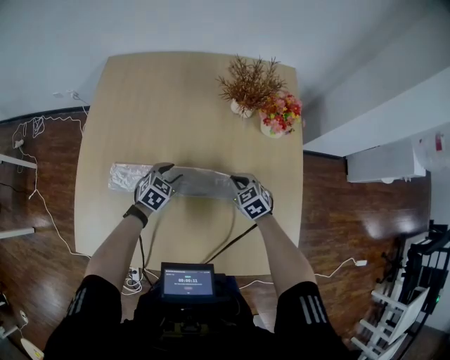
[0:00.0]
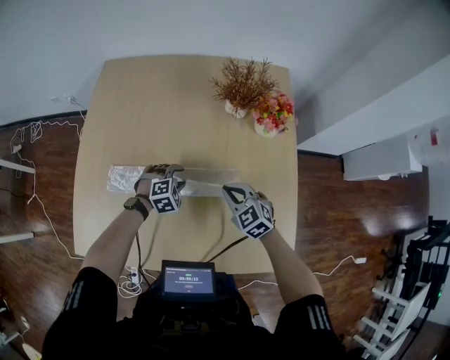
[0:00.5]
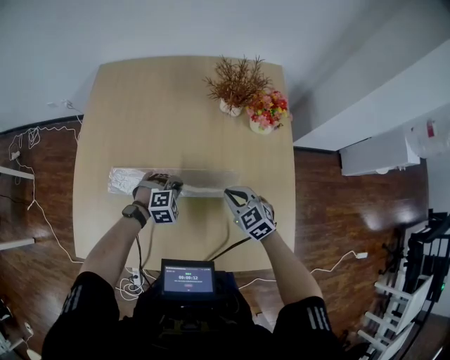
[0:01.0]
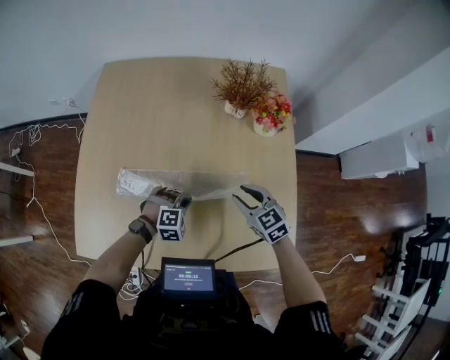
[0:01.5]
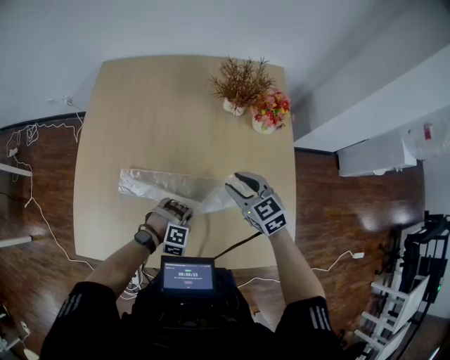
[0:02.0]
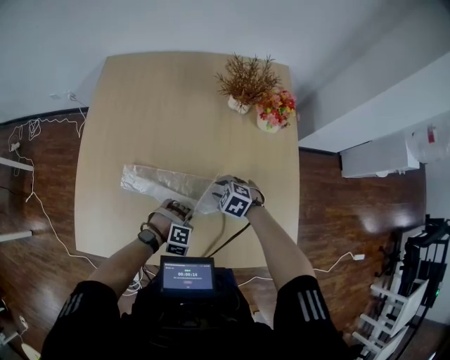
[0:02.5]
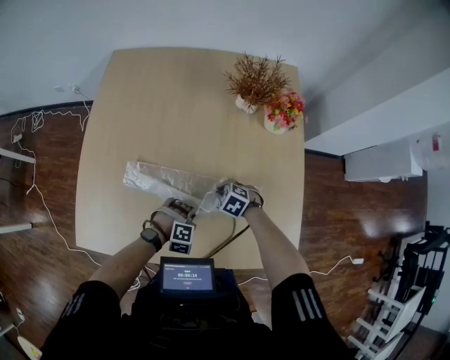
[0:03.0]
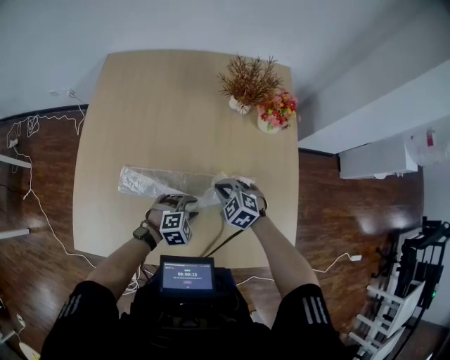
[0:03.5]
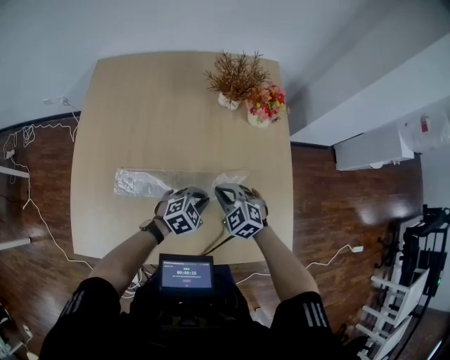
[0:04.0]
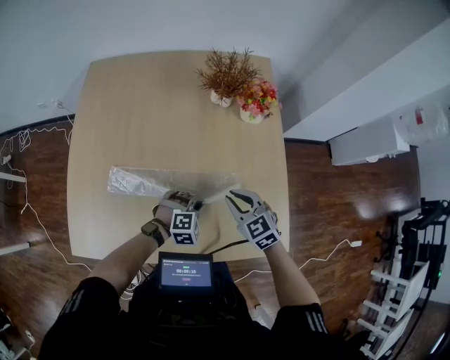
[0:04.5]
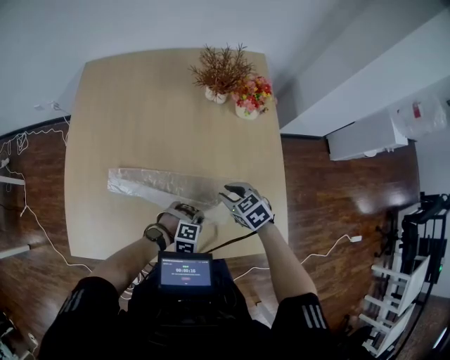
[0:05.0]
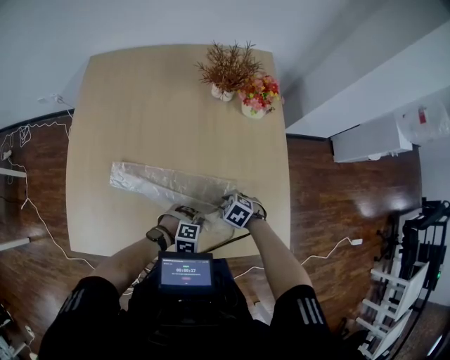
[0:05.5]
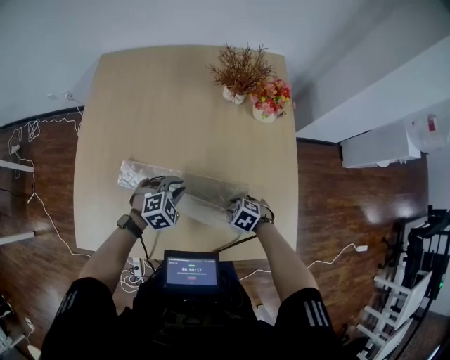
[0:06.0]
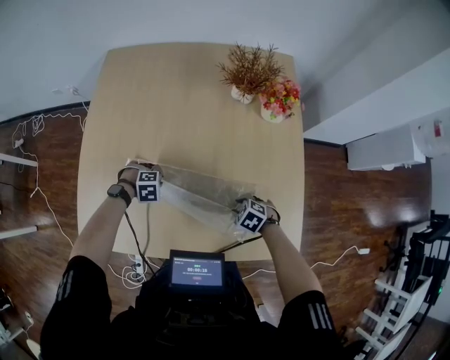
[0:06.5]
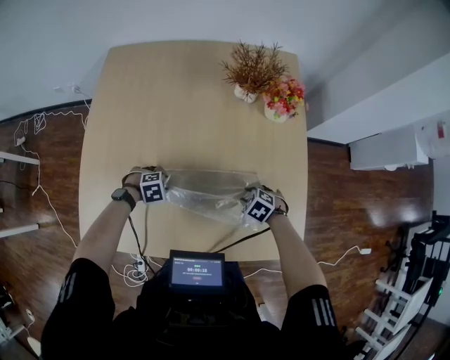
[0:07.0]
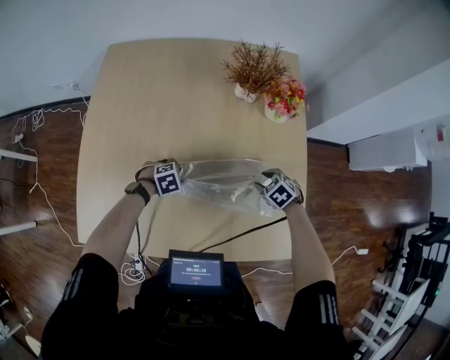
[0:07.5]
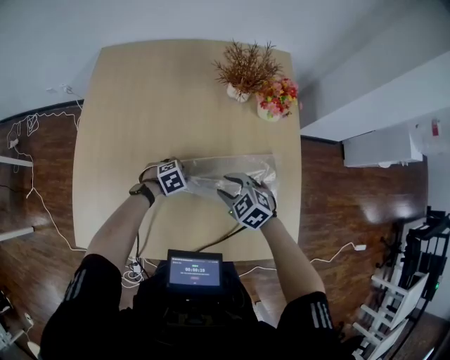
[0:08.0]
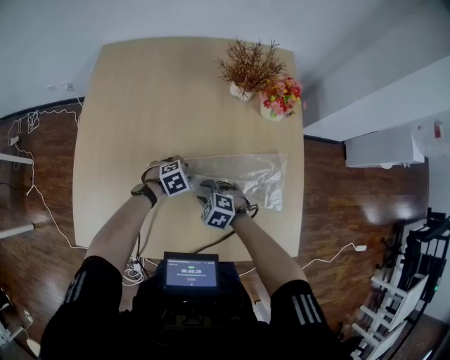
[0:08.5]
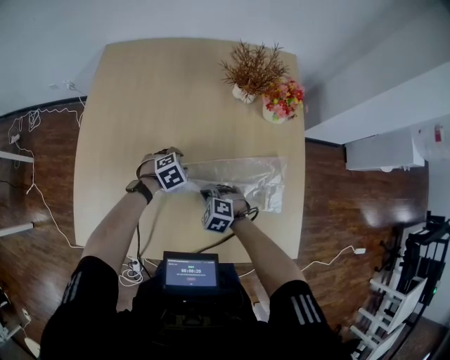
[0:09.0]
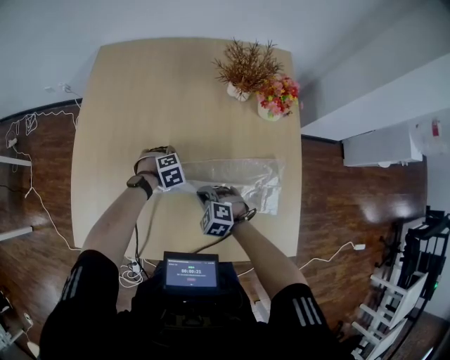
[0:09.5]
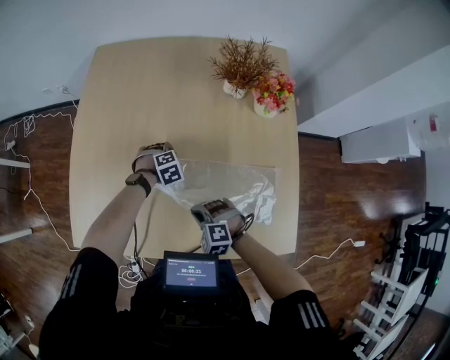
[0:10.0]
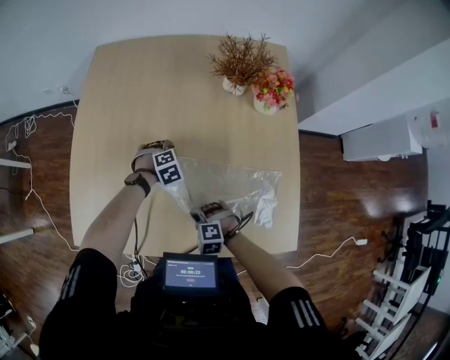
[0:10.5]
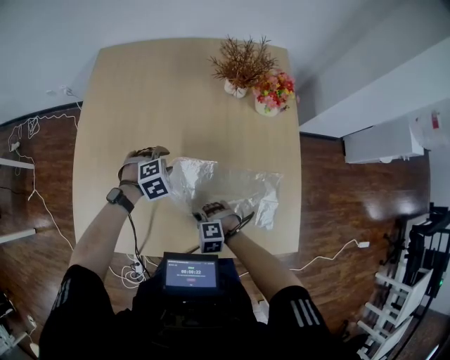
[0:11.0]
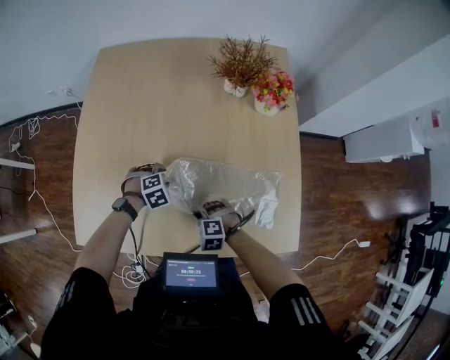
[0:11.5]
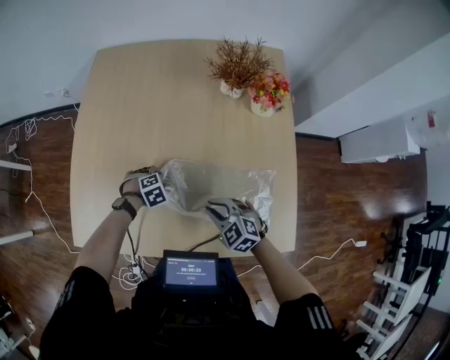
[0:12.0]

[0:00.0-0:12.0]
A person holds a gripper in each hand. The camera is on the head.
0:00.0 to 0:02.0: The right gripper goes about 15 cm upward, and opens up. The left gripper goes approximately 15 cm backward, rotates around the line of its fingers by about 70 degrees, clockwise from behind, and closes its fingers.
0:02.0 to 0:04.0: The left gripper changes place by approximately 10 cm, twists approximately 40 degrees counterclockwise, seen from behind, and opens and closes again. The right gripper shifts some 10 cm downward, changes its angle by roughly 20 degrees, and closes its fingers.
0:04.0 to 0:06.0: The right gripper moves downward, roughly 15 cm, changes its angle by some 30 degrees, and opens. Meanwhile the left gripper shifts by roughly 10 cm.
0:06.0 to 0:08.0: The right gripper is displaced upward by approximately 10 cm, and swivels approximately 20 degrees, while the left gripper goes about 10 cm downward, and rotates approximately 30 degrees.
0:08.0 to 0:10.0: The left gripper moves some 5 cm; the right gripper ends up some 15 cm from where it was, changes its angle by about 30 degrees, and closes its fingers.
0:10.0 to 0:12.0: The left gripper goes upward and returns, some 10 cm each way. The right gripper changes place by about 10 cm, and turns by some 30 degrees.

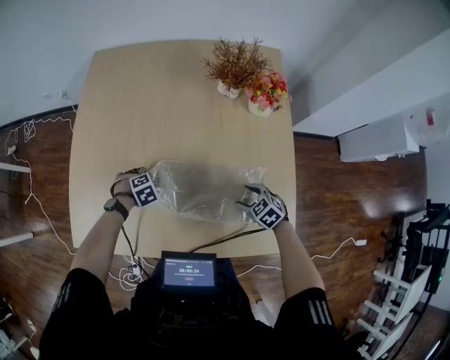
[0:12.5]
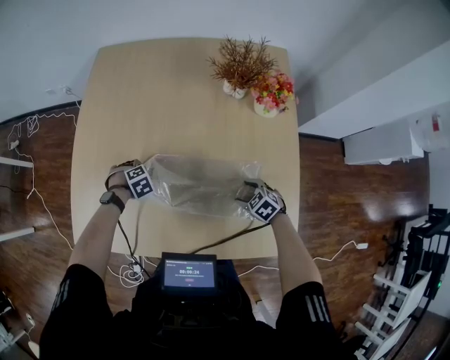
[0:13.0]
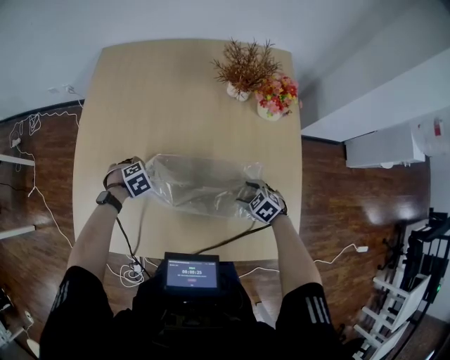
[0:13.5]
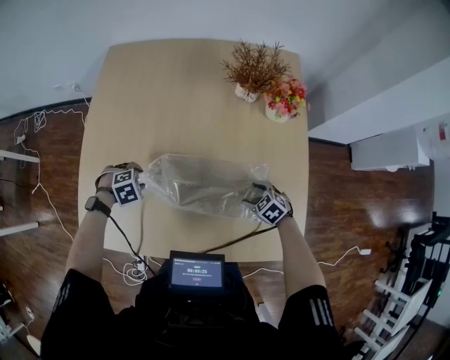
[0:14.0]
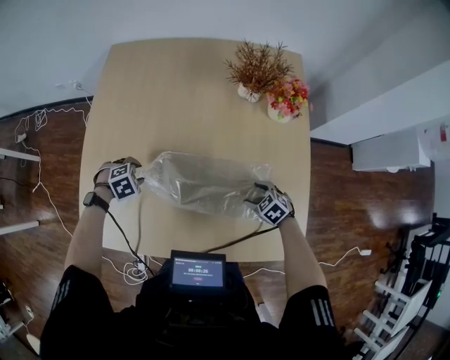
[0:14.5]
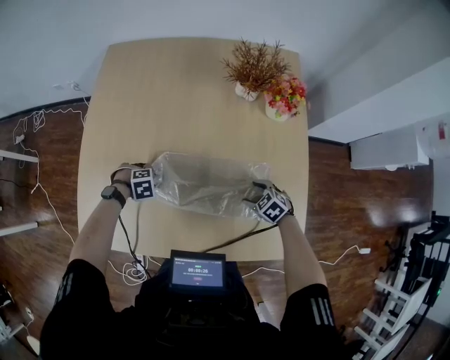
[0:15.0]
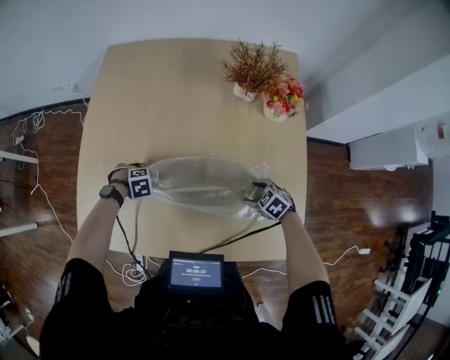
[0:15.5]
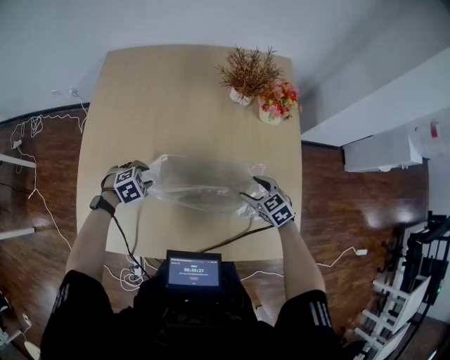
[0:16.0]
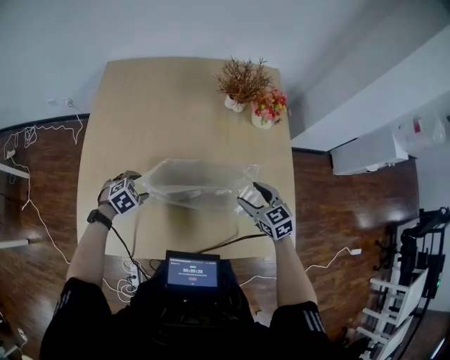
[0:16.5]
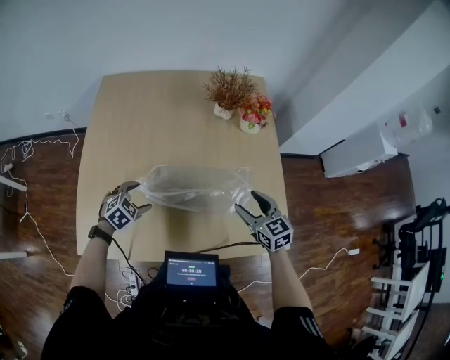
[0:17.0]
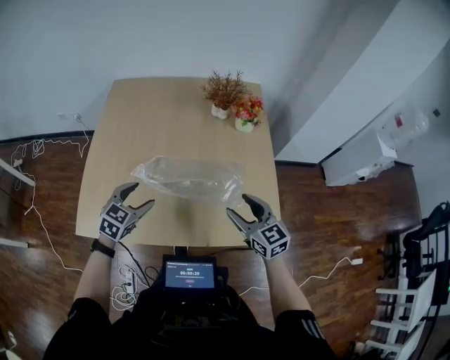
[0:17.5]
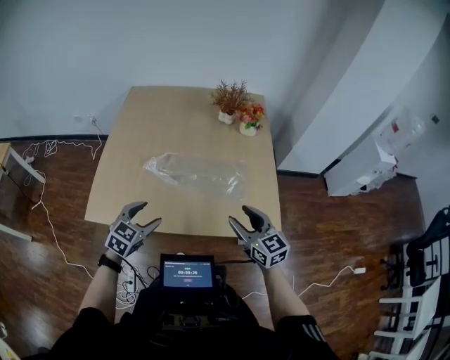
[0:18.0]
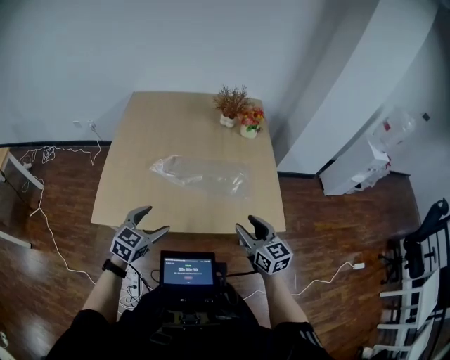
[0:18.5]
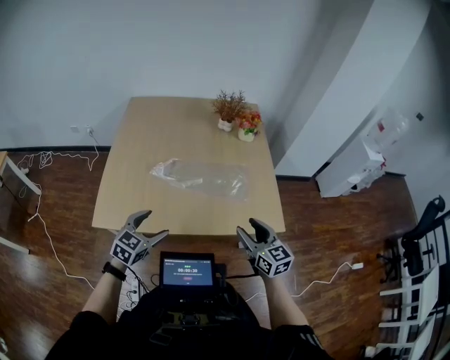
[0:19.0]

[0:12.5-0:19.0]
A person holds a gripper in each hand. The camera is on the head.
0:12.5 to 0:14.5: The left gripper ends up roughly 10 cm from where it was.
0:14.5 to 0:17.0: The right gripper travels upward by approximately 20 cm, and angles its fingers upward, by some 40 degrees; the left gripper moves upward, roughly 10 cm, rotates roughly 30 degrees, and opens its fingers.
0:17.0 to 0:19.0: The left gripper shifts roughly 30 cm backward and upward, and rotates roughly 30 degrees. Meanwhile the right gripper moves backward, about 25 cm.

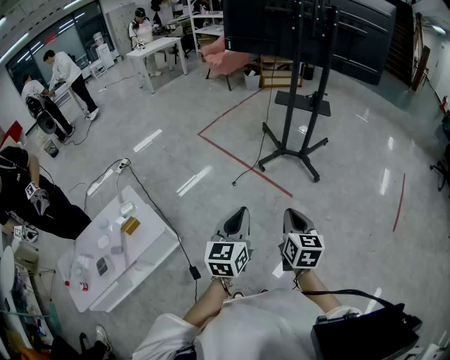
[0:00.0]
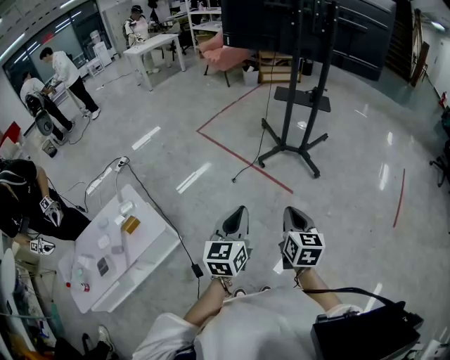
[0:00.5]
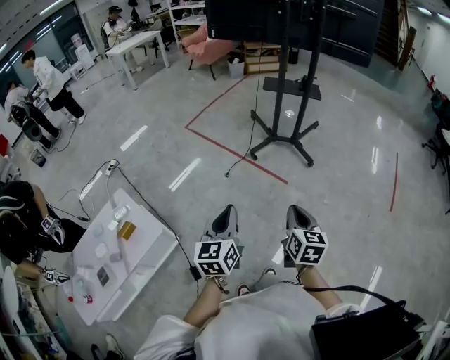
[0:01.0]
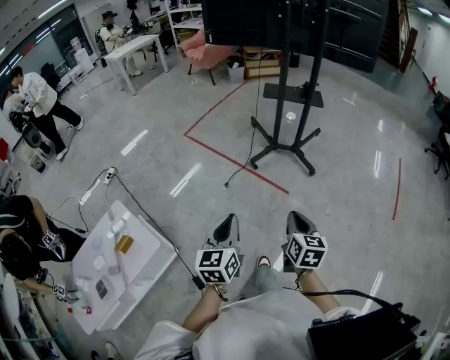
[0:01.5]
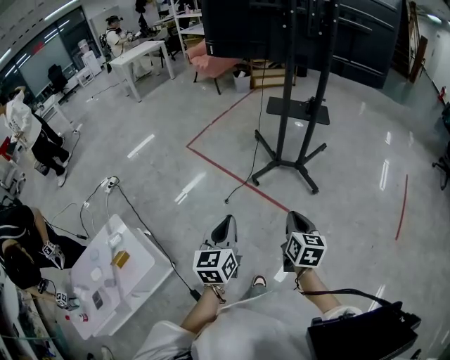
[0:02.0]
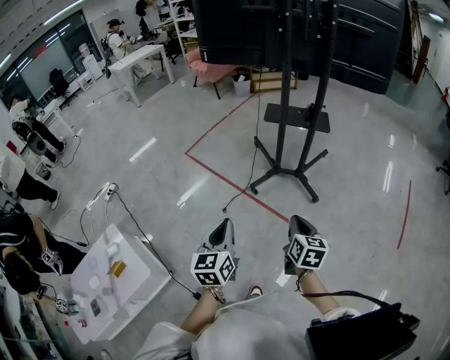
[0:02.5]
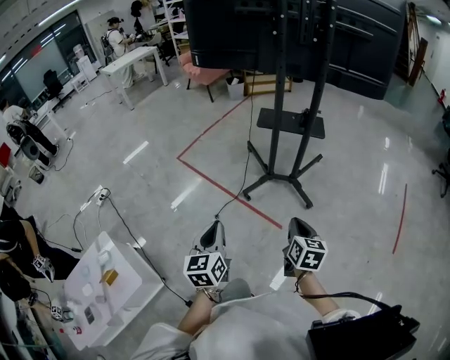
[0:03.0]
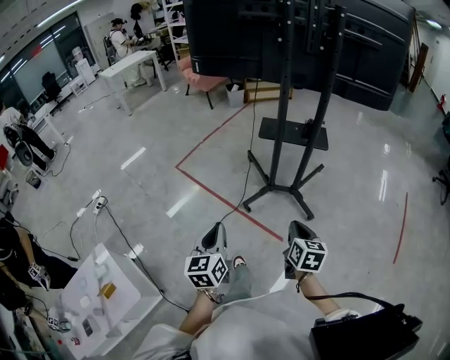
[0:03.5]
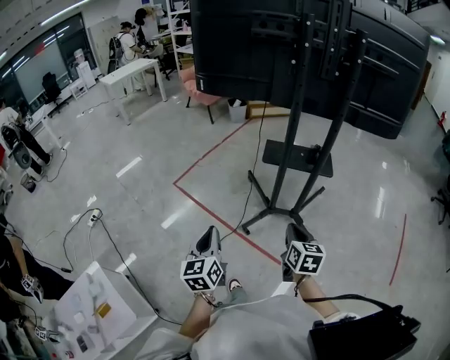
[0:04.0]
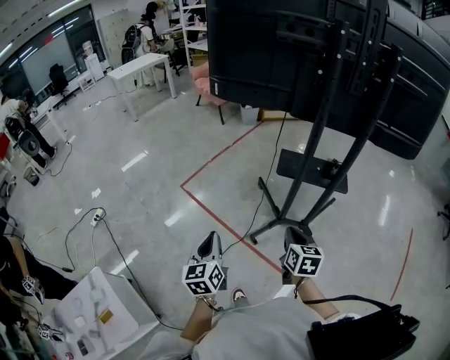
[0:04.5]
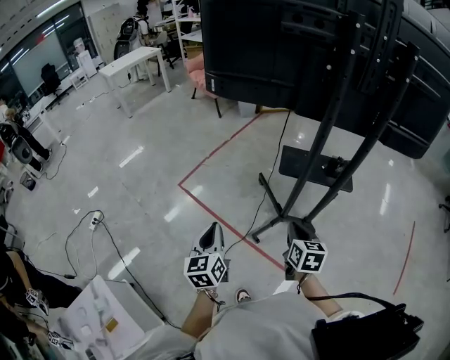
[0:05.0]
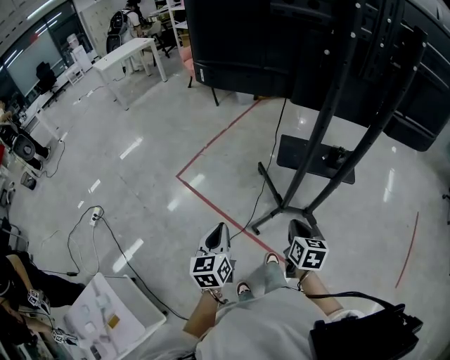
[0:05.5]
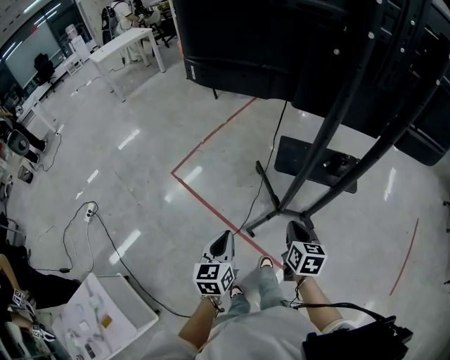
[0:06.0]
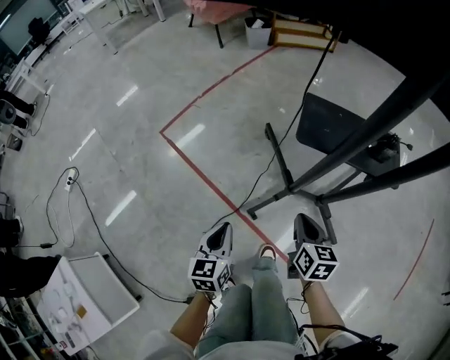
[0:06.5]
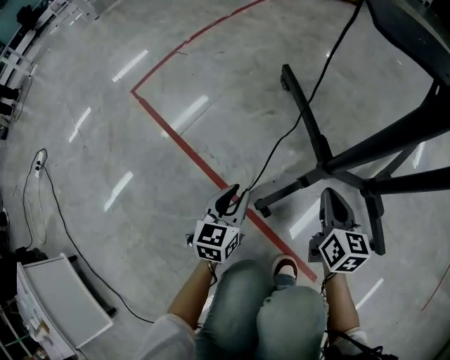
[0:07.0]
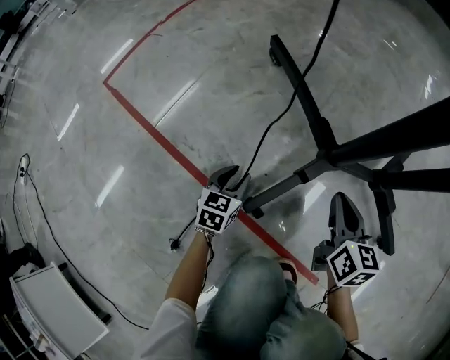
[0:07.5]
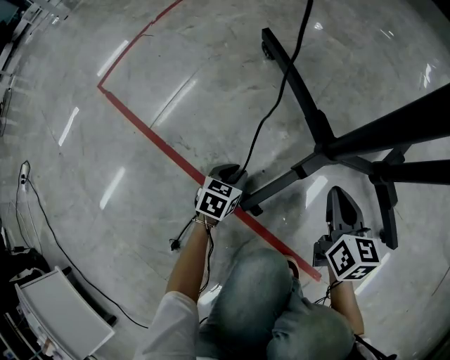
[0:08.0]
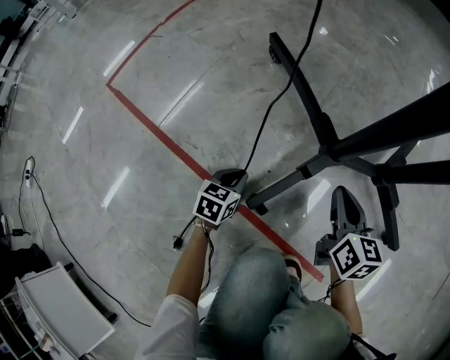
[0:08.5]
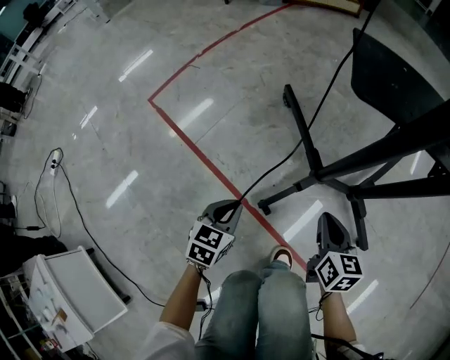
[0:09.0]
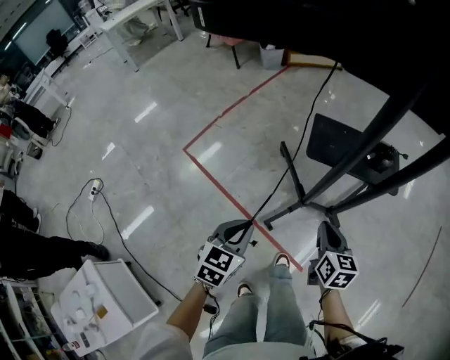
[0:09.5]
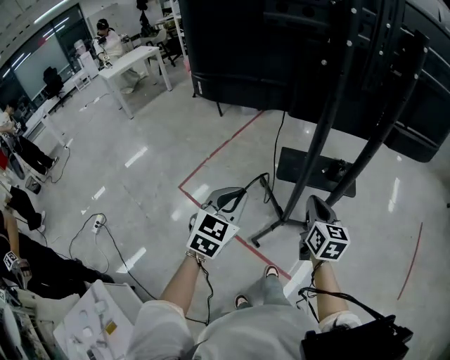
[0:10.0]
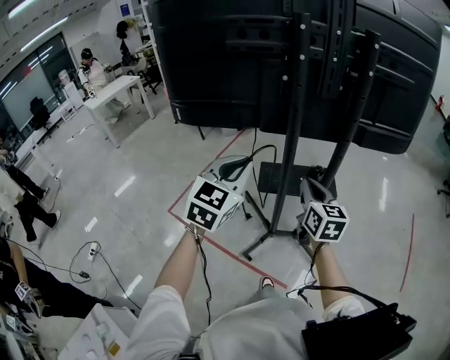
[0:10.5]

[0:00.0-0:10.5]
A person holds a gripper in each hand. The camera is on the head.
0:00.0 to 0:02.0: Both grippers travel together forward, approximately 20 cm.
0:02.0 to 0:04.0: Both grippers travel together forward, approximately 30 cm.
0:04.0 to 0:06.5: The left gripper moves downward and forward, approximately 50 cm. Meanwhile the right gripper moves forward and downward, about 40 cm.
0:06.5 to 0:08.5: The two grippers go some 50 cm downward. The left gripper rotates roughly 30 degrees, and opens and closes again.
0:08.5 to 0:10.5: Both grippers move upward, roughly 1 m. The left gripper points its fingers approximately 40 degrees further upward, while the right gripper rotates approximately 20 degrees.
